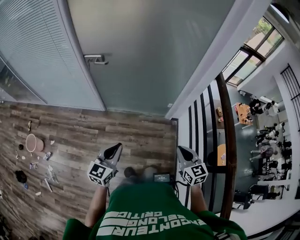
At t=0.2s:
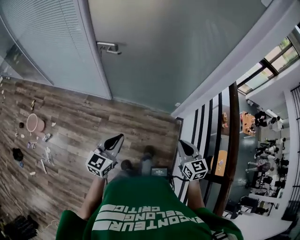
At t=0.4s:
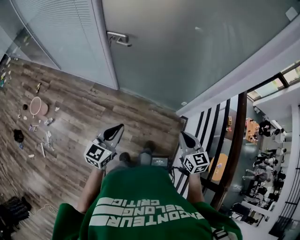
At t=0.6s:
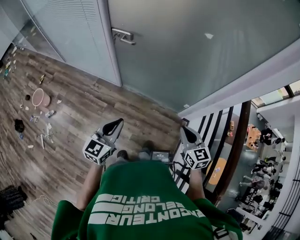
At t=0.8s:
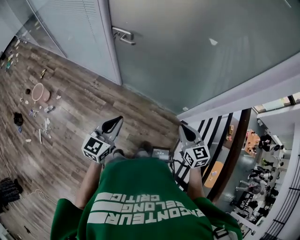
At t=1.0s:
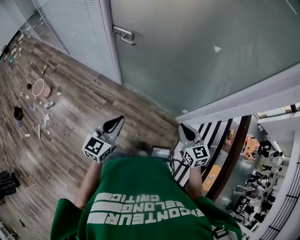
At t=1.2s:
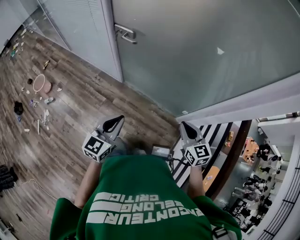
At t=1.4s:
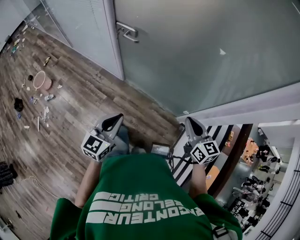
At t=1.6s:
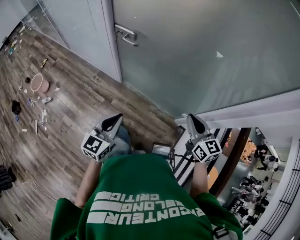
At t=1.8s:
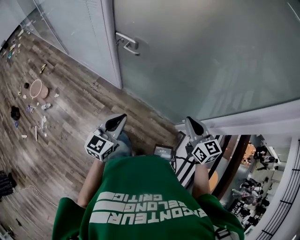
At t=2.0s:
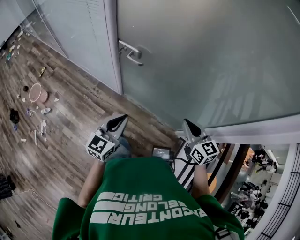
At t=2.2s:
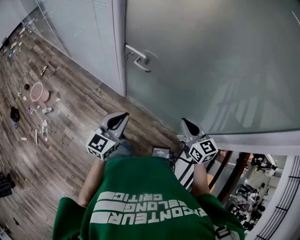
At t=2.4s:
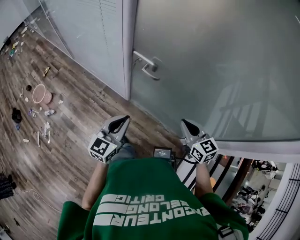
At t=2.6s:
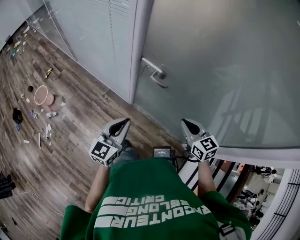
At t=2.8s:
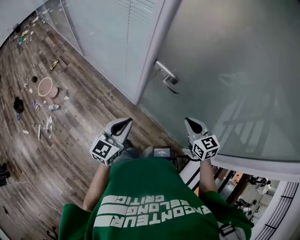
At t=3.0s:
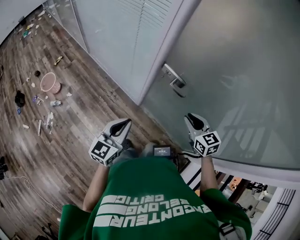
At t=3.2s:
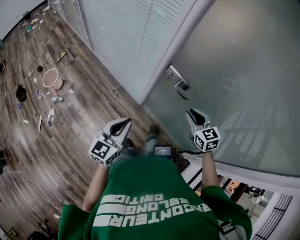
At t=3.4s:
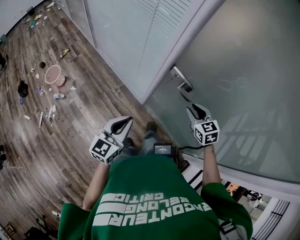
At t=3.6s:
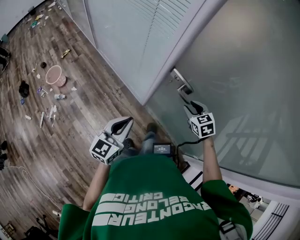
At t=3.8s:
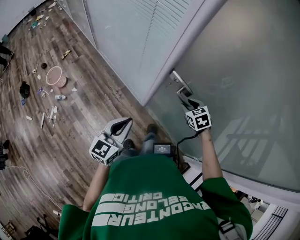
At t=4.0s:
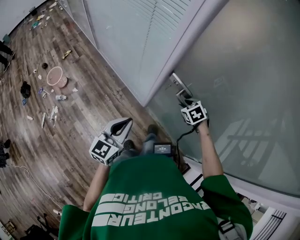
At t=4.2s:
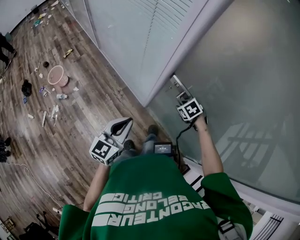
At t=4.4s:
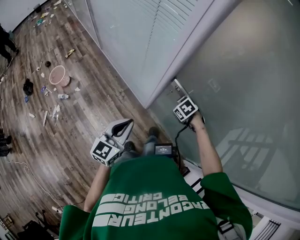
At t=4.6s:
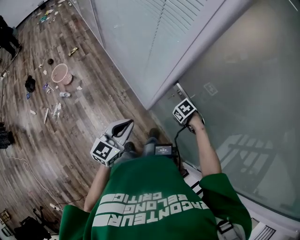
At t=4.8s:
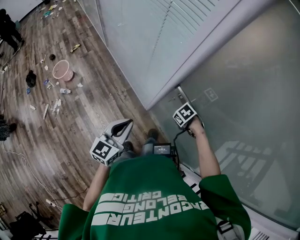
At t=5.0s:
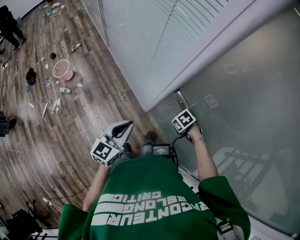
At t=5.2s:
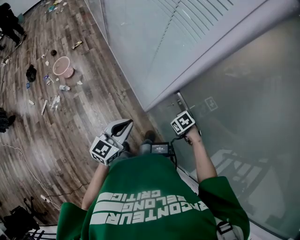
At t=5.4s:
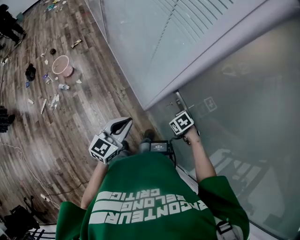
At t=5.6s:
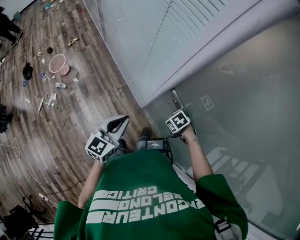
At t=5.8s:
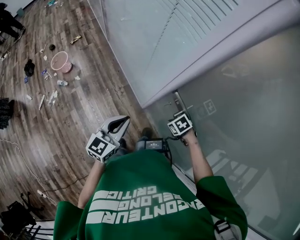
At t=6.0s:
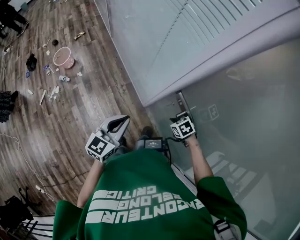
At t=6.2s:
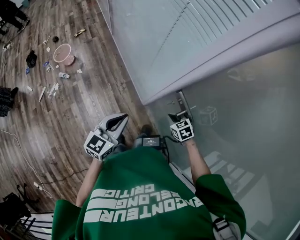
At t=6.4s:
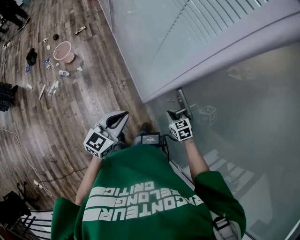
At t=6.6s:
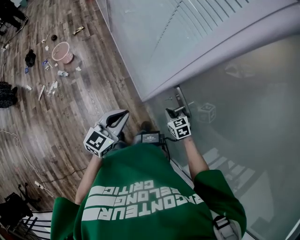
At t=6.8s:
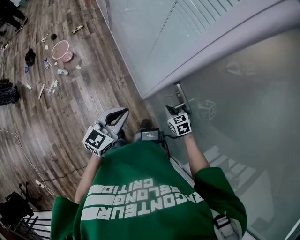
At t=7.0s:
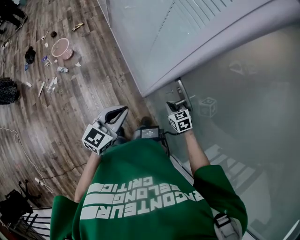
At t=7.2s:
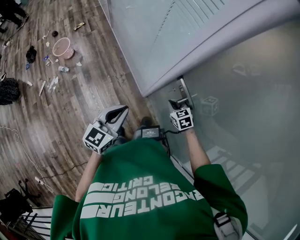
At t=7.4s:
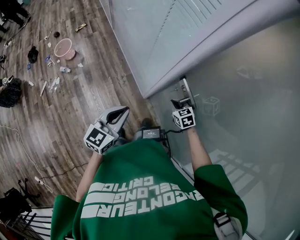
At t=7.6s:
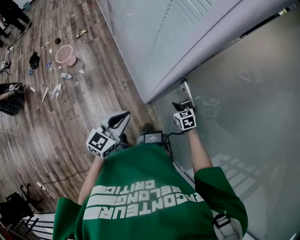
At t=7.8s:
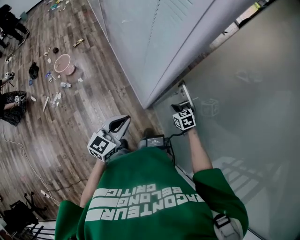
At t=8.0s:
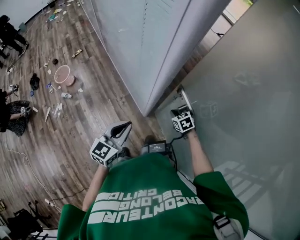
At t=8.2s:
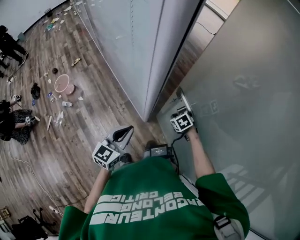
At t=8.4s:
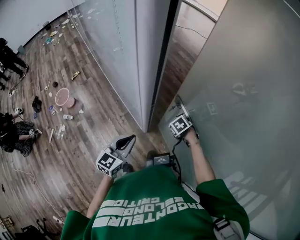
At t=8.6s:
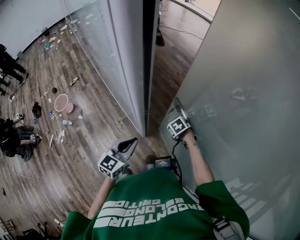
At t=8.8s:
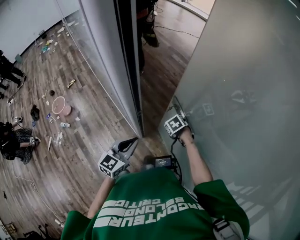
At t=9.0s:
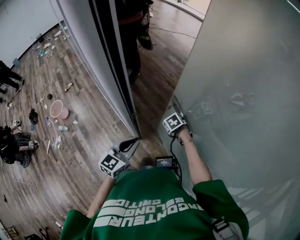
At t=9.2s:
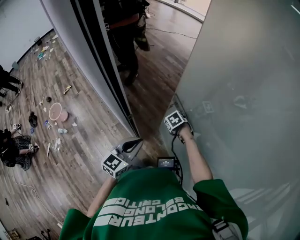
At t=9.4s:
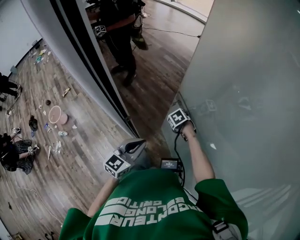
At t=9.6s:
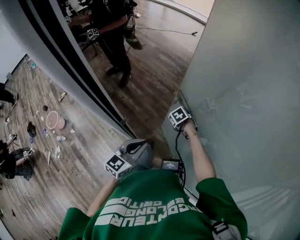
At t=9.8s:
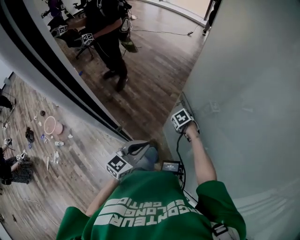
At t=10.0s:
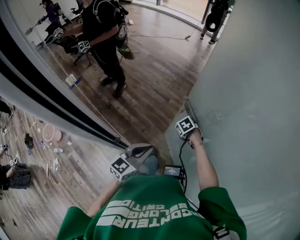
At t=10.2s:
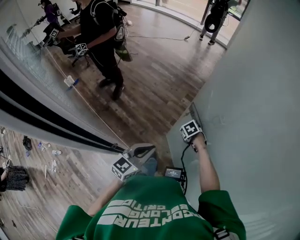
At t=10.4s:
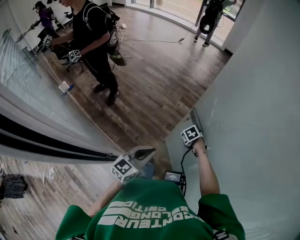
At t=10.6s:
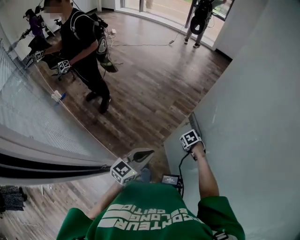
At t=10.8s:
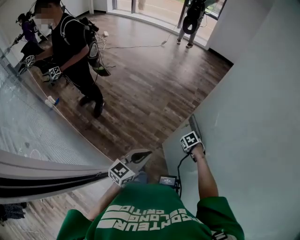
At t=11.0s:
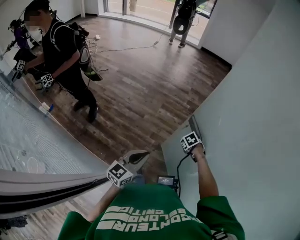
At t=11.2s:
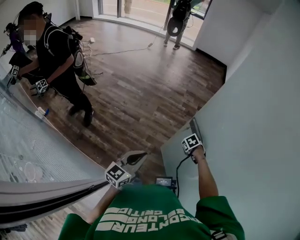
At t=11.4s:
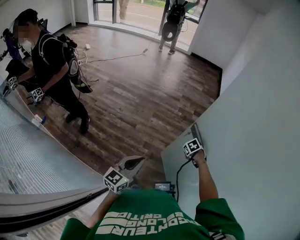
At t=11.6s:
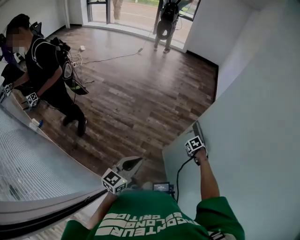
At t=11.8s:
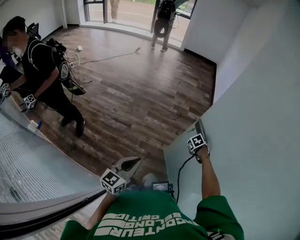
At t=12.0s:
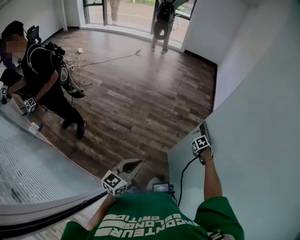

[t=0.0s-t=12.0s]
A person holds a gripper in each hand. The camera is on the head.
t=0.0s to t=1.6s: The left gripper shifts approximately 15 cm forward, and rotates roughly 20 degrees, while the right gripper moves forward, roughly 30 cm, and turns by roughly 30 degrees.
t=1.6s to t=3.0s: The right gripper moves forward and to the left, approximately 30 cm, and turns by roughly 30 degrees. Meanwhile the left gripper shifts approximately 25 cm to the left and forward.
t=3.0s to t=4.4s: The left gripper moves roughly 5 cm. Meanwhile the right gripper travels downward by approximately 15 cm, and tips its fingers downward by approximately 50 degrees.
t=4.4s to t=6.0s: The right gripper closes up.
t=6.0s to t=7.6s: The right gripper heads forward, covering approximately 5 cm, and changes its angle by roughly 20 degrees.
t=7.6s to t=9.0s: The right gripper ends up about 15 cm from where it was, and swivels approximately 30 degrees, while the left gripper changes place by roughly 20 cm.
t=9.0s to t=10.4s: The right gripper shifts by roughly 25 cm. Meanwhile the left gripper ends up some 20 cm from where it was, and changes its angle by approximately 20 degrees.
t=10.4s to t=12.0s: The left gripper changes place by approximately 15 cm, while the right gripper shifts by roughly 30 cm, and rotates roughly 20 degrees.

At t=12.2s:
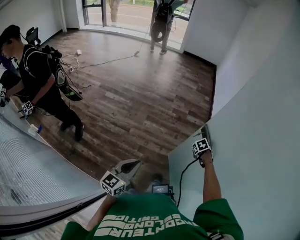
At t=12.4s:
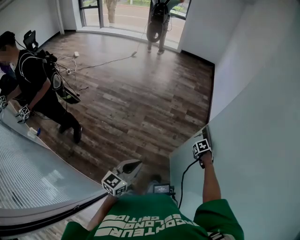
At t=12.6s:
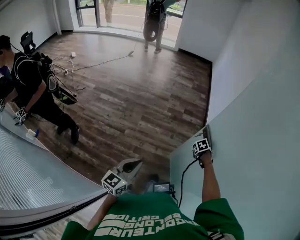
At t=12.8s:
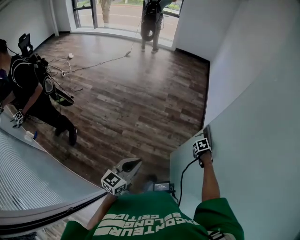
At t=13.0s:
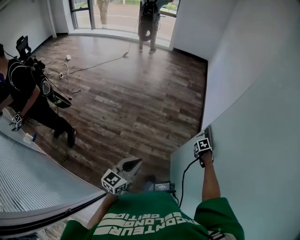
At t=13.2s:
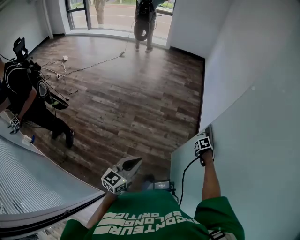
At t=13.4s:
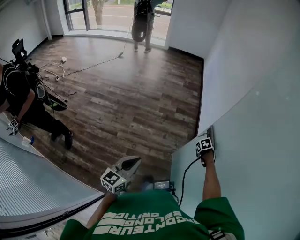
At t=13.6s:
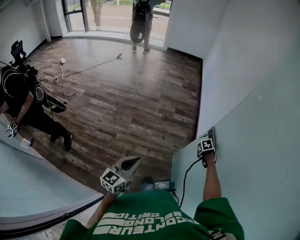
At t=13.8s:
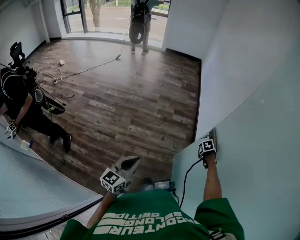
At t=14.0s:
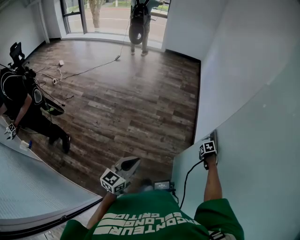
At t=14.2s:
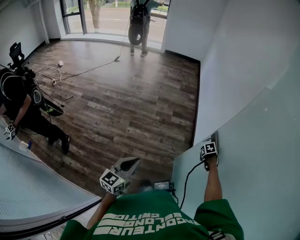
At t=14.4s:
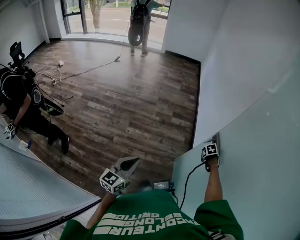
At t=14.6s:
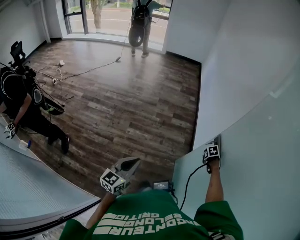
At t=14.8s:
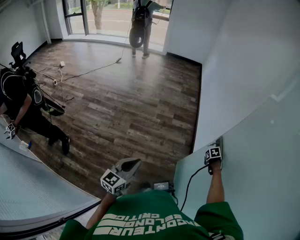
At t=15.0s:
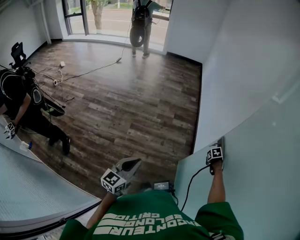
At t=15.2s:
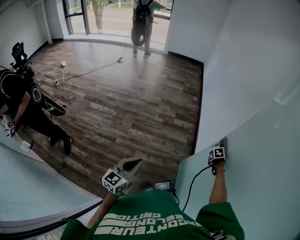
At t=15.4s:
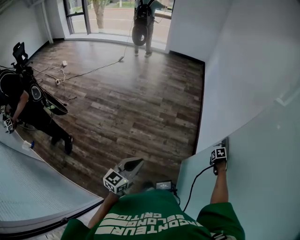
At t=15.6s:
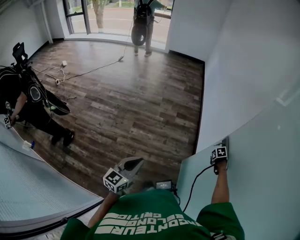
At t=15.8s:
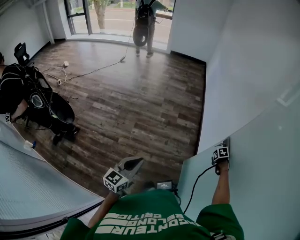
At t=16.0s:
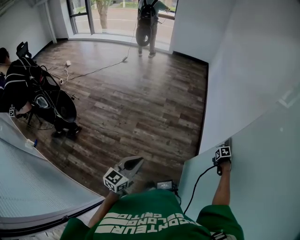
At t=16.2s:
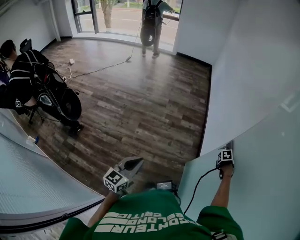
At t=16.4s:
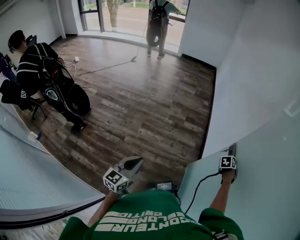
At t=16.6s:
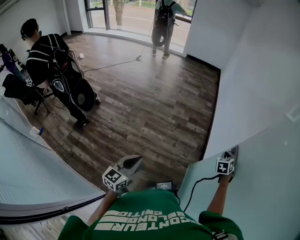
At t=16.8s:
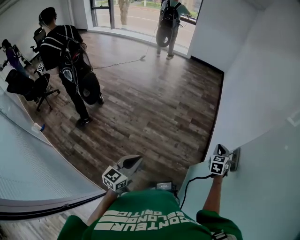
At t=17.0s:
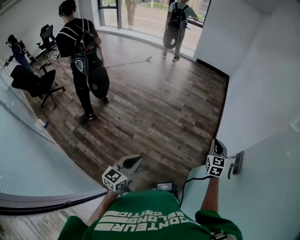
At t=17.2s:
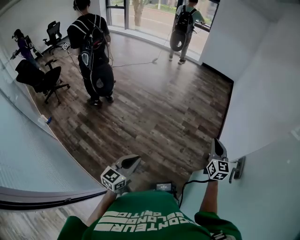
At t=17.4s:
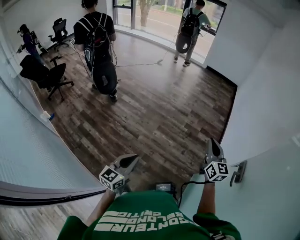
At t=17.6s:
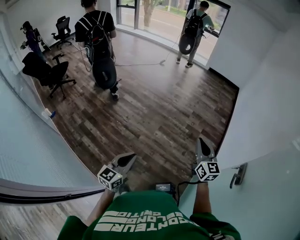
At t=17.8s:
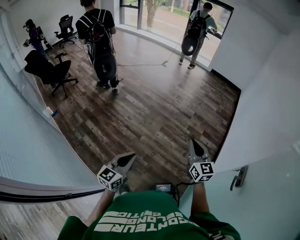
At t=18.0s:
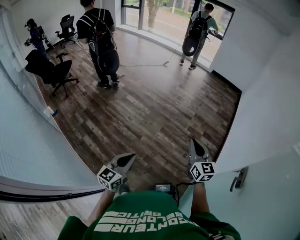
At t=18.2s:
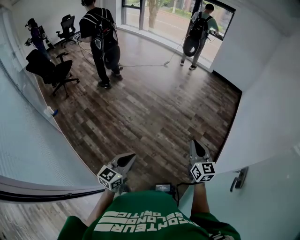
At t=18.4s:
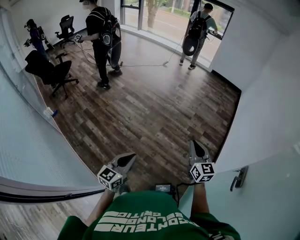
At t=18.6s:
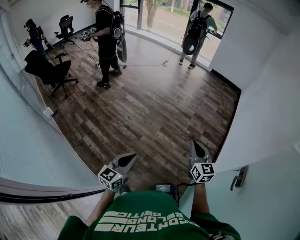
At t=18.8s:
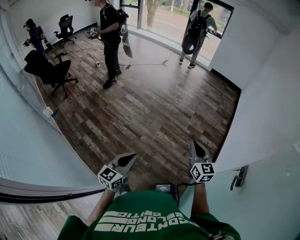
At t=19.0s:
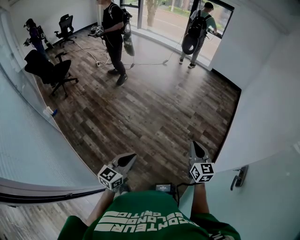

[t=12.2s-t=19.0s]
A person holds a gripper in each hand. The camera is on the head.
t=12.2s to t=13.6s: The right gripper ends up some 20 cm from where it was; the left gripper shifts by some 15 cm.
t=13.6s to t=15.0s: The right gripper moves some 10 cm.
t=15.0s to t=16.2s: The right gripper goes approximately 5 cm upward, and opens up.
t=16.2s to t=17.6s: The left gripper changes place by approximately 15 cm, and swivels about 20 degrees; the right gripper changes place by some 50 cm, points its fingers roughly 70 degrees further upward, and closes.
t=17.6s to t=19.0s: The grippers stay close to where they were, moving slightly.

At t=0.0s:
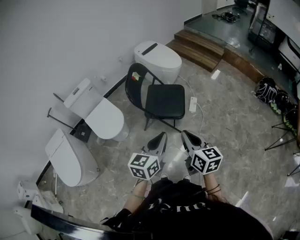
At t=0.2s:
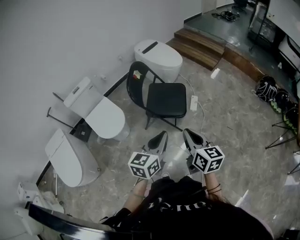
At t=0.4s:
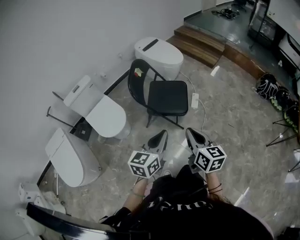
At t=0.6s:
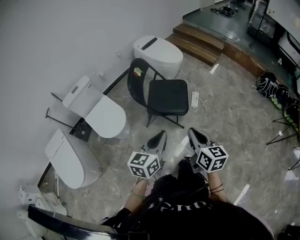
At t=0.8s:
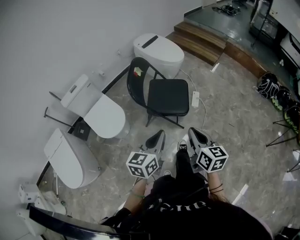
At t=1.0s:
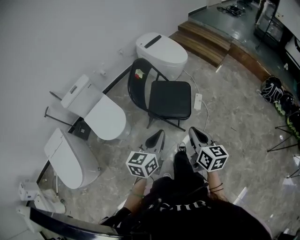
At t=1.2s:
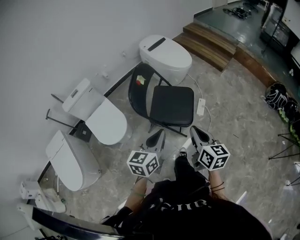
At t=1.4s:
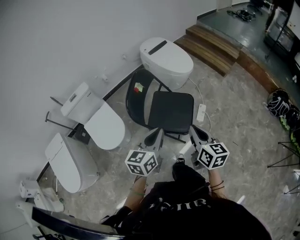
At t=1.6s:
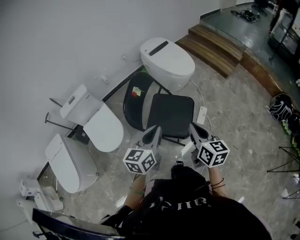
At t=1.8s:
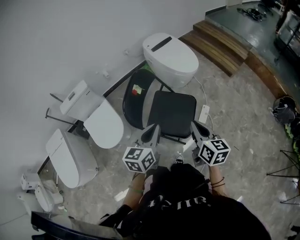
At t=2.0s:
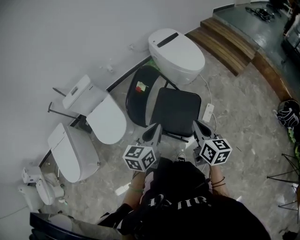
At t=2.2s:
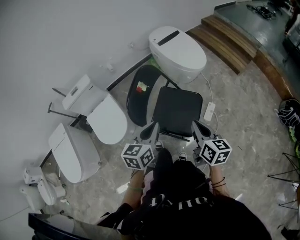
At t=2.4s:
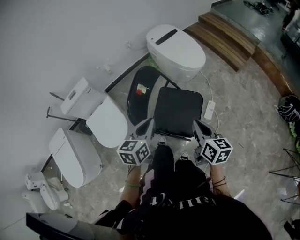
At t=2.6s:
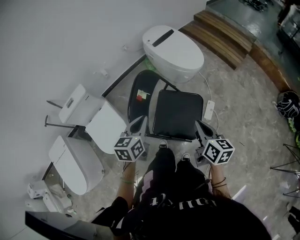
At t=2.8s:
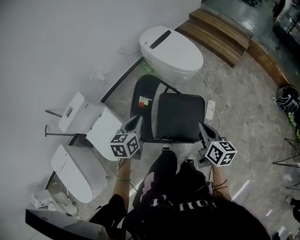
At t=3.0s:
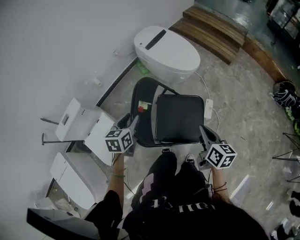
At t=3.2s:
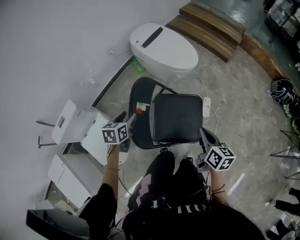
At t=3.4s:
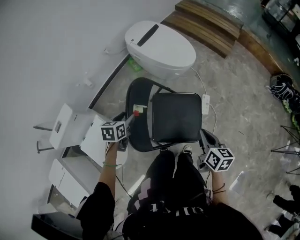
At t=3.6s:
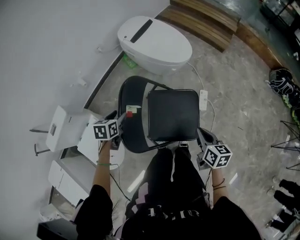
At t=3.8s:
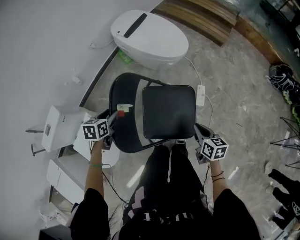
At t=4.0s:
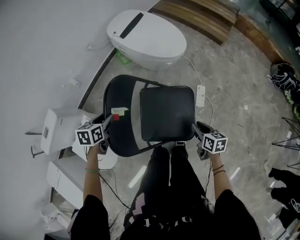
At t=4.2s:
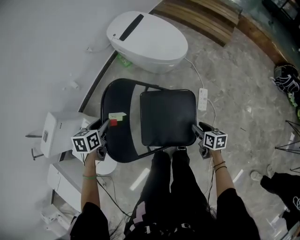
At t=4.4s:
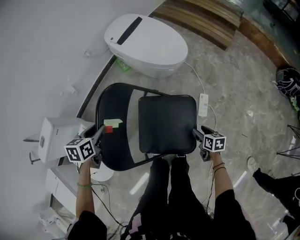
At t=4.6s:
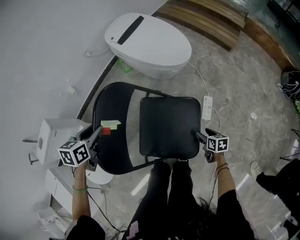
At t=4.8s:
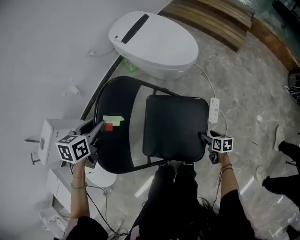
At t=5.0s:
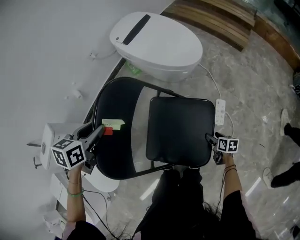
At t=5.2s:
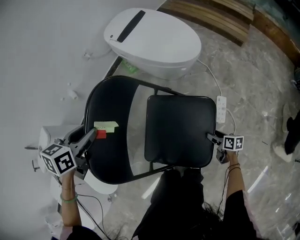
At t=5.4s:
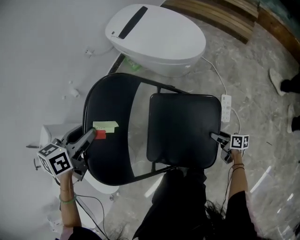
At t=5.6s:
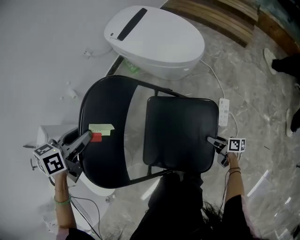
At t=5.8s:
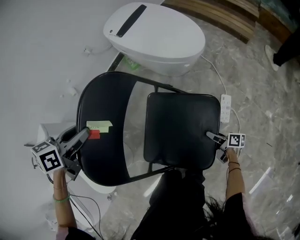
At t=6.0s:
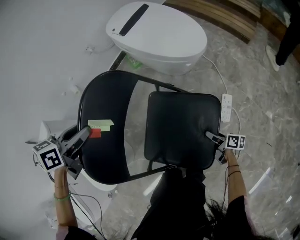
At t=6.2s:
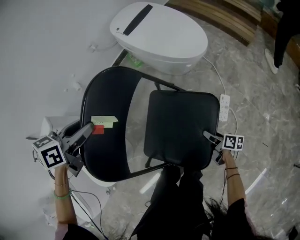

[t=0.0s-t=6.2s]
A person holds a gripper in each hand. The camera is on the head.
t=0.0s to t=1.6s: Both grippers move forward, roughly 30 cm.
t=1.6s to t=3.2s: The right gripper moves forward and downward, some 20 cm, and changes its angle by approximately 20 degrees, while the left gripper heads forward, to the left and downward, covering roughly 40 cm, tips its fingers downward by about 30 degrees, and opens its fingers.
t=3.2s to t=4.6s: The left gripper travels forward and downward by about 10 cm; the right gripper is displaced downward by approximately 40 cm, changes its angle by approximately 30 degrees, and opens its fingers.
t=4.6s to t=6.2s: The left gripper moves some 5 cm, while the right gripper shifts about 10 cm downward, and turns by roughly 30 degrees.
